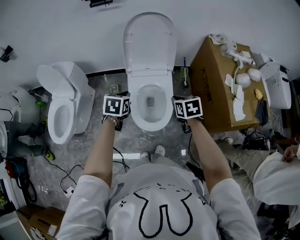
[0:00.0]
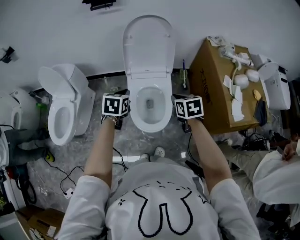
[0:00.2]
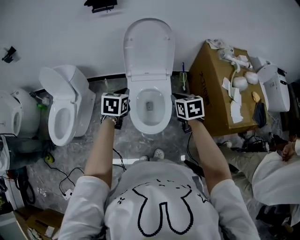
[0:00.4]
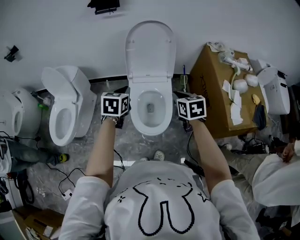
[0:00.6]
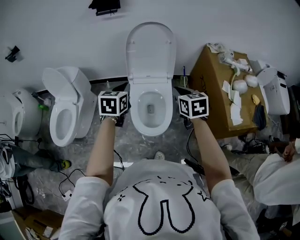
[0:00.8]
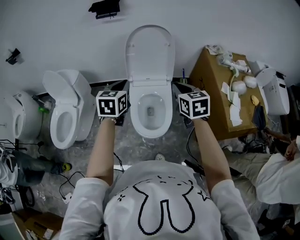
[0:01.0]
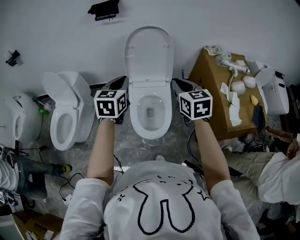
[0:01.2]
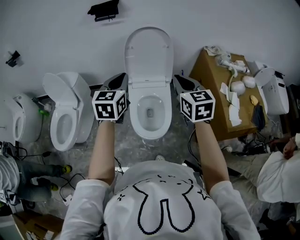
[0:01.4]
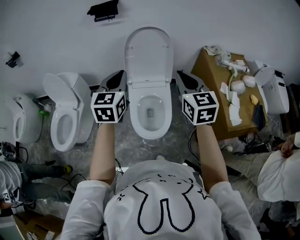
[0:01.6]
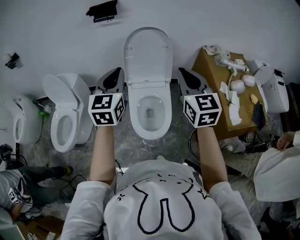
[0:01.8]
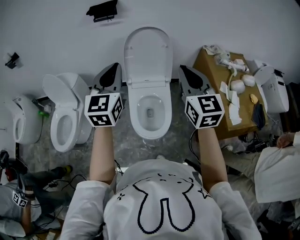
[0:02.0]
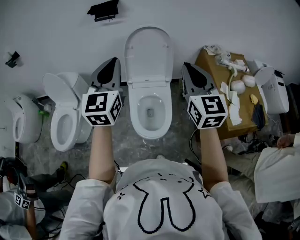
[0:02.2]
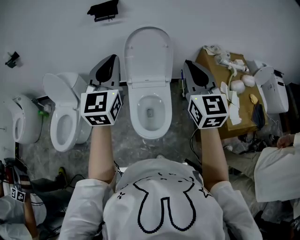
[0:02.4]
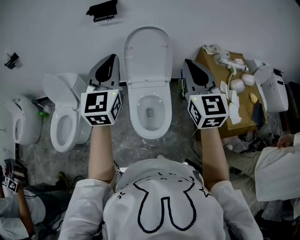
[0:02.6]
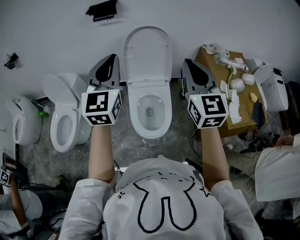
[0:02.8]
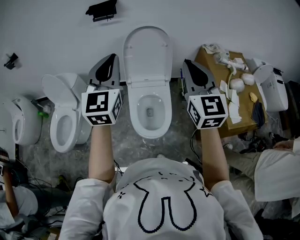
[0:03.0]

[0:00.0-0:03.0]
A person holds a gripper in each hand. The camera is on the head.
0:00.0 to 0:01.6: Both grippers travel together upward, about 25 cm. The right gripper tilts its fingers approximately 40 degrees upward, while the left gripper tips its fingers upward by about 40 degrees.
0:01.6 to 0:03.0: The two grippers go about 10 cm upward.

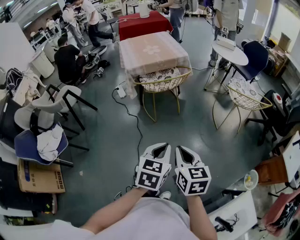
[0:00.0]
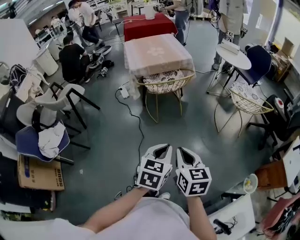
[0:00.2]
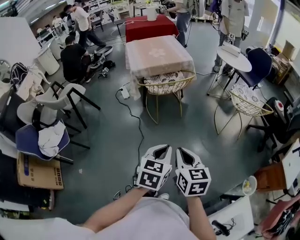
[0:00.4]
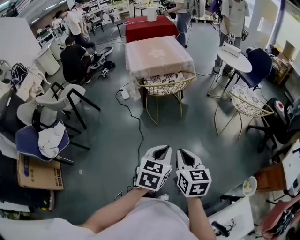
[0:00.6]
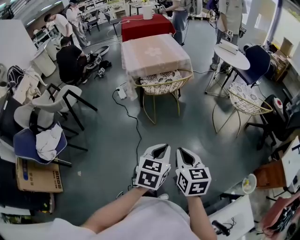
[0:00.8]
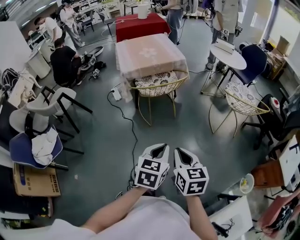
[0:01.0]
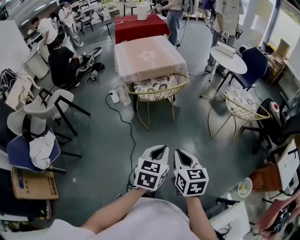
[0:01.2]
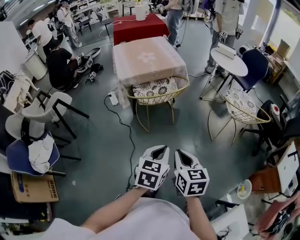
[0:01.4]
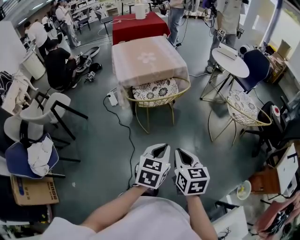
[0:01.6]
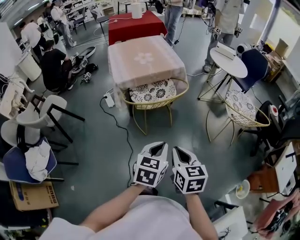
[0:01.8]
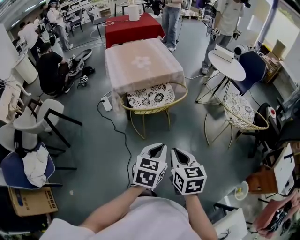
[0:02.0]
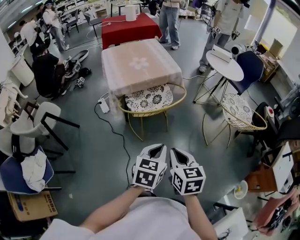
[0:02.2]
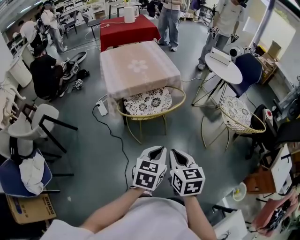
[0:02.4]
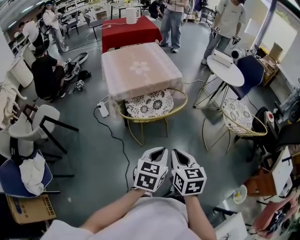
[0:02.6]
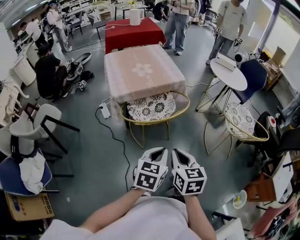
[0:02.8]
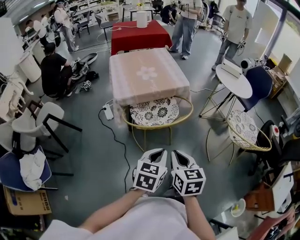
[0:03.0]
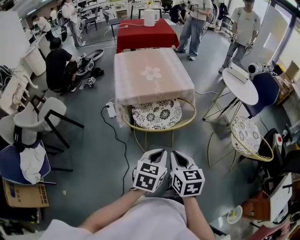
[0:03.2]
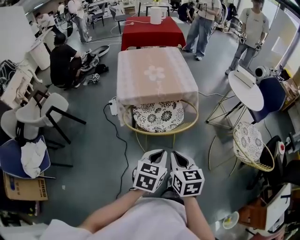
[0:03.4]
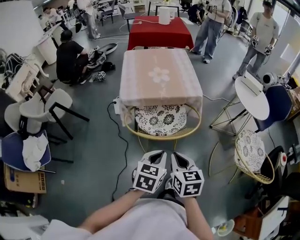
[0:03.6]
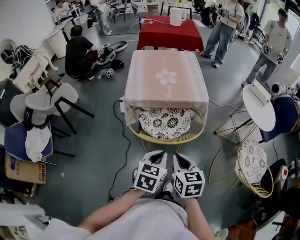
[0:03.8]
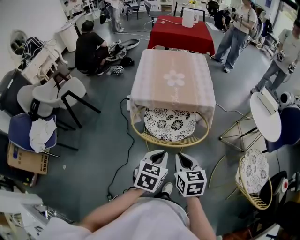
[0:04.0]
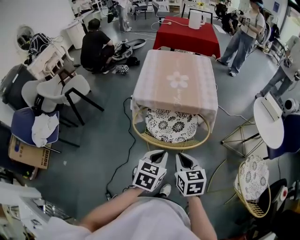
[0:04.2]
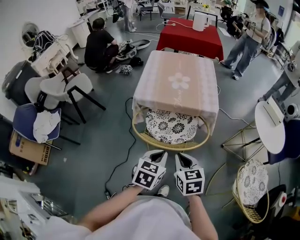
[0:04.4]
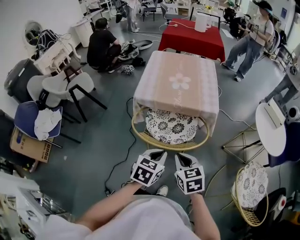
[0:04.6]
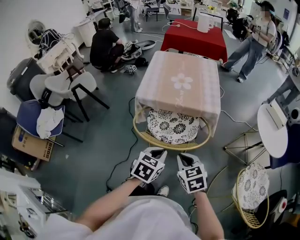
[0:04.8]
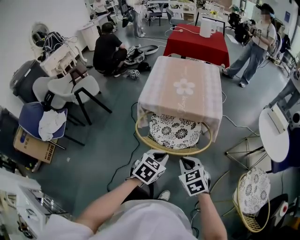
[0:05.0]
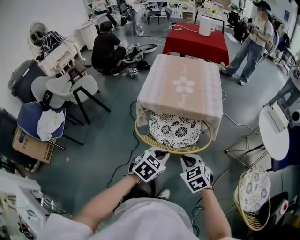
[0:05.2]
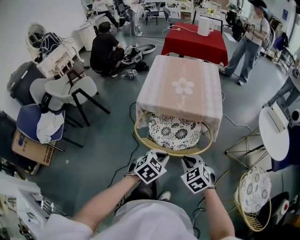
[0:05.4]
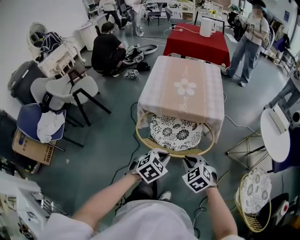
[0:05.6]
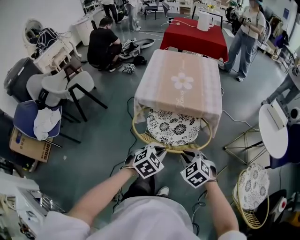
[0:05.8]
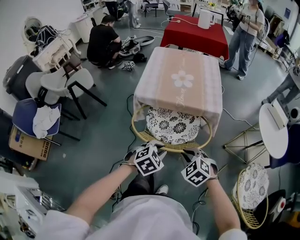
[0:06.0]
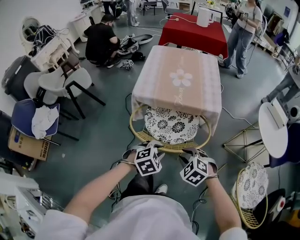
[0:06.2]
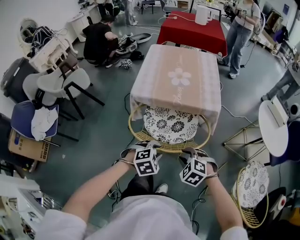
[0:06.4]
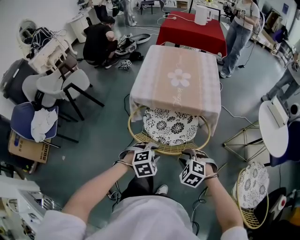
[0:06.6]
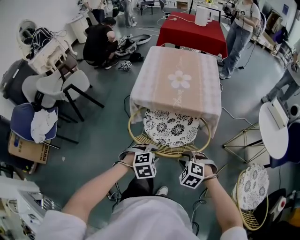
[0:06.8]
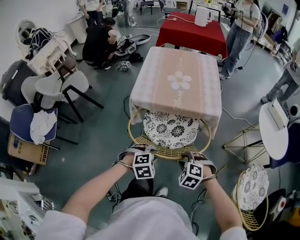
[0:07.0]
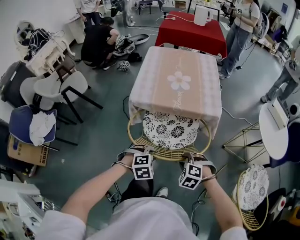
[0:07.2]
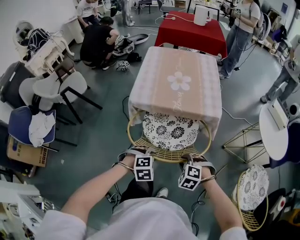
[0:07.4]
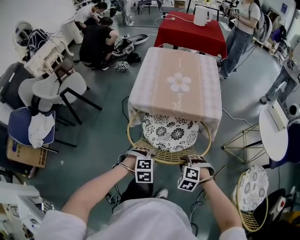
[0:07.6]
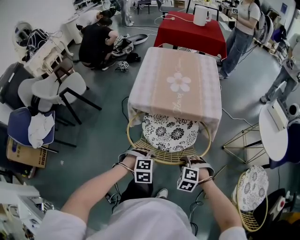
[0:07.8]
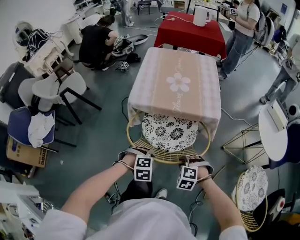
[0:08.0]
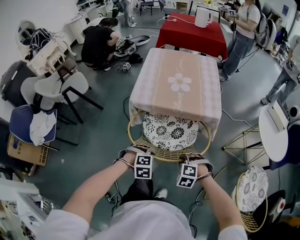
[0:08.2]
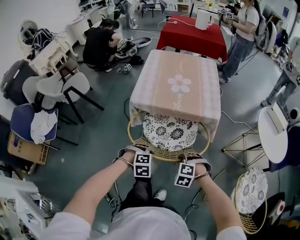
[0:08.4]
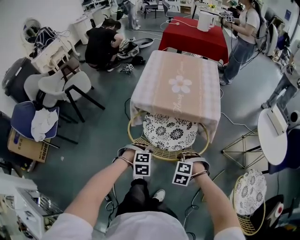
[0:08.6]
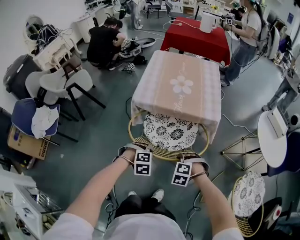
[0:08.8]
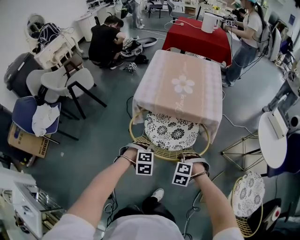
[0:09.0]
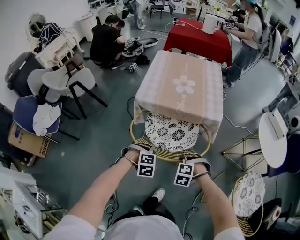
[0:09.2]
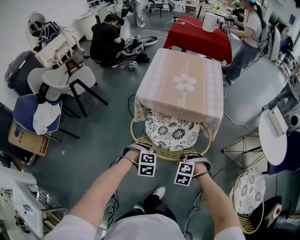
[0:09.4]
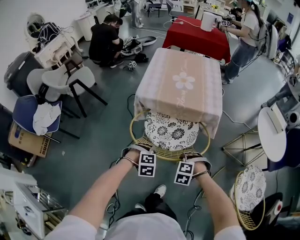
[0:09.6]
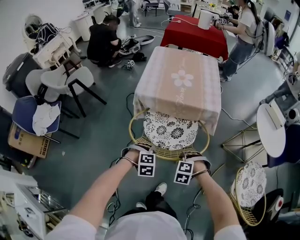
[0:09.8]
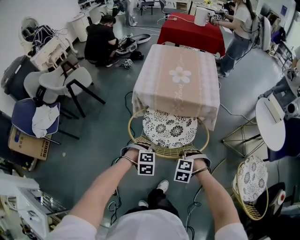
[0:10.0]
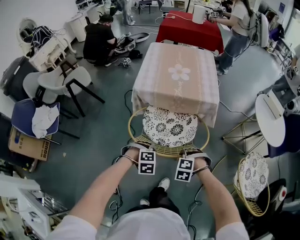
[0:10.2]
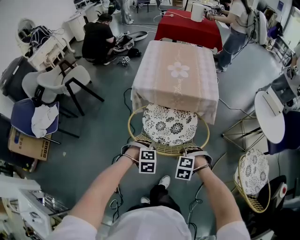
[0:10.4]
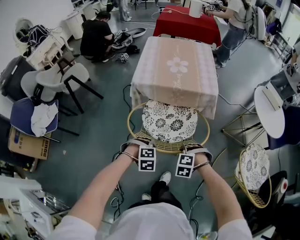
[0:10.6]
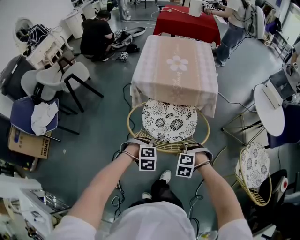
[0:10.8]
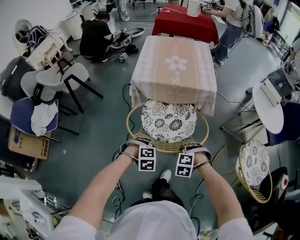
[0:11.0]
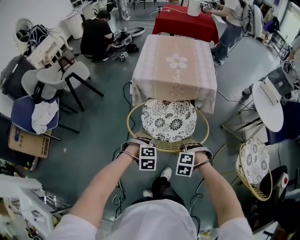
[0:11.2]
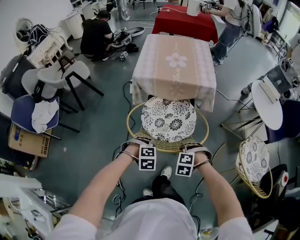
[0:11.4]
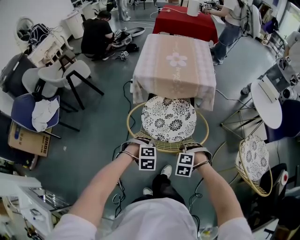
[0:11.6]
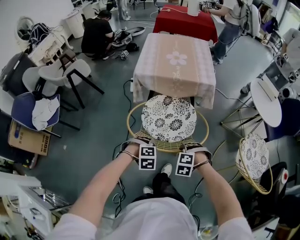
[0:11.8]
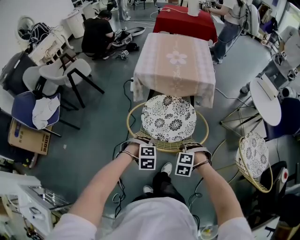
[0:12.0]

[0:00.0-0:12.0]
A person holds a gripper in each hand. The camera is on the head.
0:00.0 to 0:01.6: The two grippers go about 15 cm forward.
0:01.6 to 0:03.0: Both grippers move forward, about 15 cm.
0:03.0 to 0:04.4: The left gripper ends up about 15 cm from where it was, and rotates about 20 degrees, while the right gripper ends up approximately 20 cm from where it was, and swivels approximately 30 degrees.
0:04.4 to 0:06.0: The grippers both shift downward by some 5 cm. The left gripper swivels some 40 degrees, while the right gripper rotates around the line of its fingers by roughly 40 degrees, counterclockwise from behind.
0:06.0 to 0:07.6: The two grippers go roughly 10 cm downward. The left gripper swivels some 30 degrees, while the right gripper swivels about 30 degrees.
0:07.6 to 0:09.0: There are only small adjustments of the grippers.
0:09.0 to 0:10.4: The grippers both shift backward by some 10 cm.
0:10.4 to 0:12.0: Both grippers travel together backward, about 10 cm.

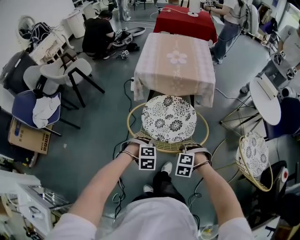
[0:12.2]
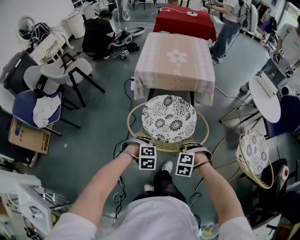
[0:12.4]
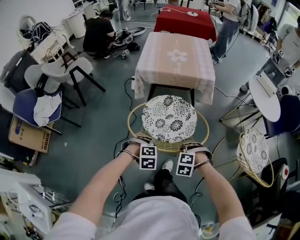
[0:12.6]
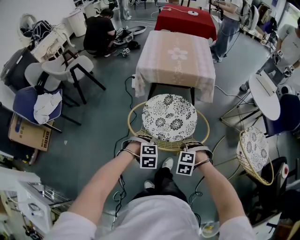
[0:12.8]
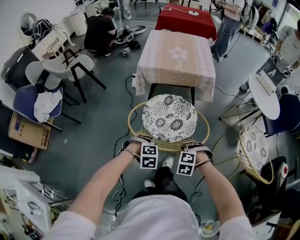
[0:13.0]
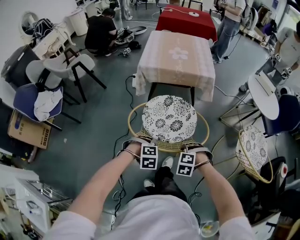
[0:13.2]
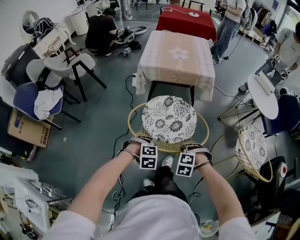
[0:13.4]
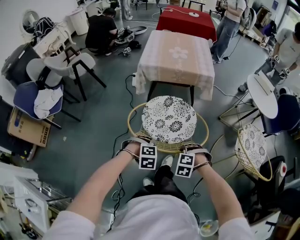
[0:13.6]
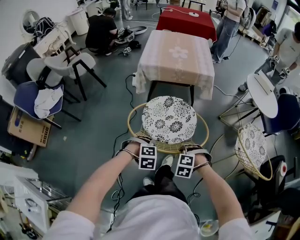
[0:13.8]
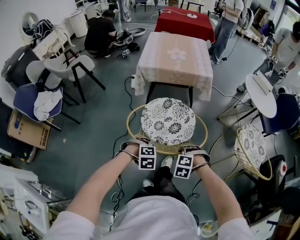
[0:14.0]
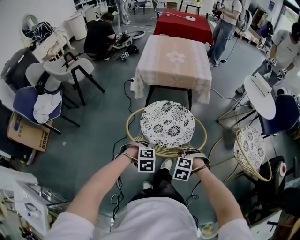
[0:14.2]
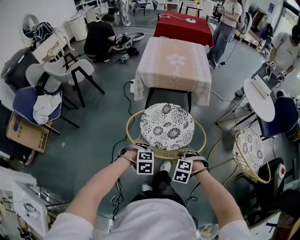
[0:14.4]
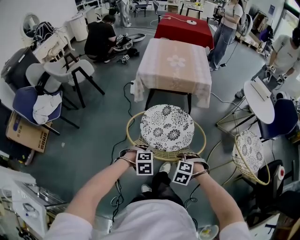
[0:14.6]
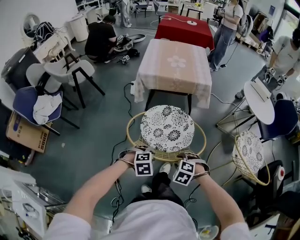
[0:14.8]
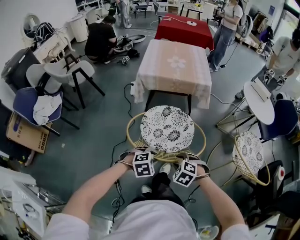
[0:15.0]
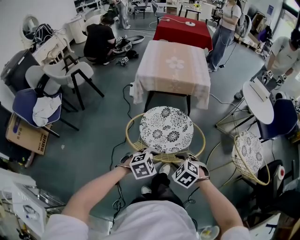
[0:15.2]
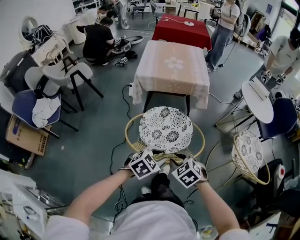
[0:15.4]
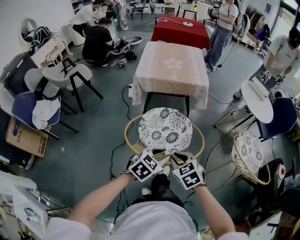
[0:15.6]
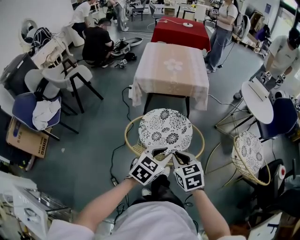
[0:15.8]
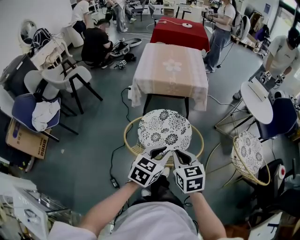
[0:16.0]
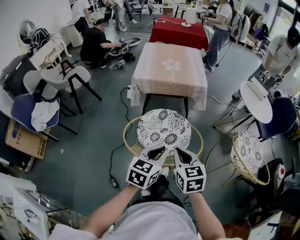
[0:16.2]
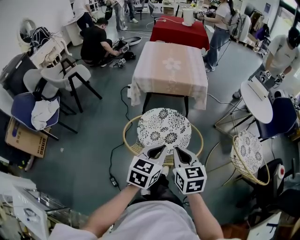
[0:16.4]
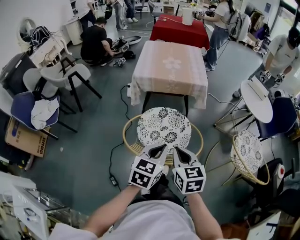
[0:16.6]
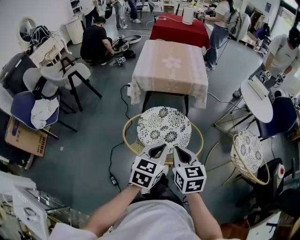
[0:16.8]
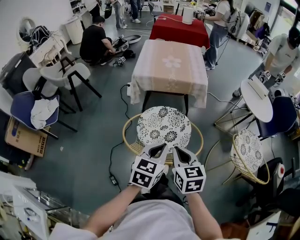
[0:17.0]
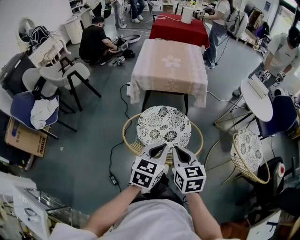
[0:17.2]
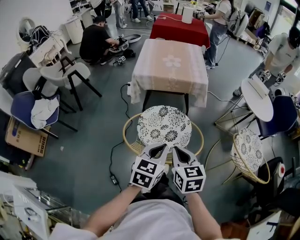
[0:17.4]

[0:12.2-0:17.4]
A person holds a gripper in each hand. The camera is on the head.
0:12.2 to 0:14.0: The grippers both shift backward by about 10 cm.
0:14.0 to 0:15.6: The left gripper goes about 15 cm upward and to the right, and tips its fingers upward by some 40 degrees. The right gripper goes about 15 cm upward, and rotates around the line of its fingers by about 50 degrees, clockwise from behind.
0:15.6 to 0:17.4: Both grippers move upward, roughly 5 cm. The right gripper changes its angle by some 30 degrees, while the left gripper swivels roughly 30 degrees, and closes.

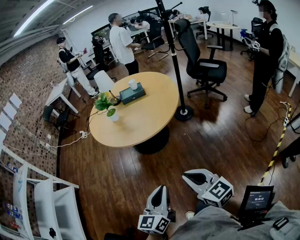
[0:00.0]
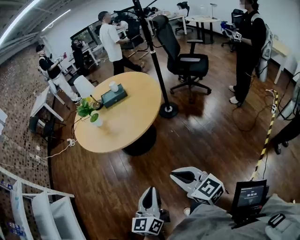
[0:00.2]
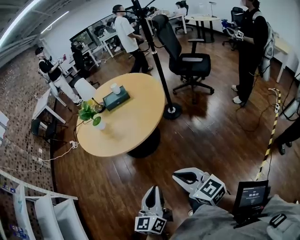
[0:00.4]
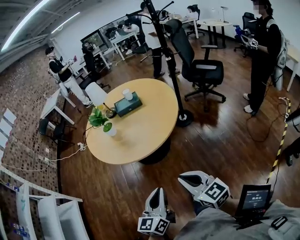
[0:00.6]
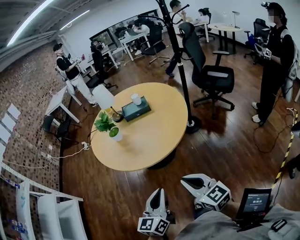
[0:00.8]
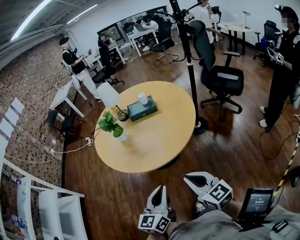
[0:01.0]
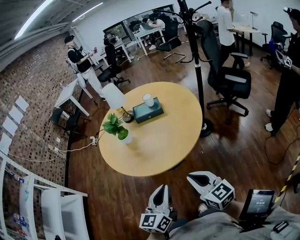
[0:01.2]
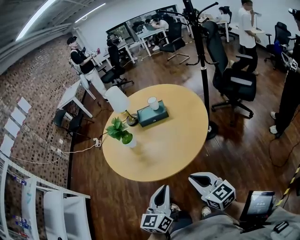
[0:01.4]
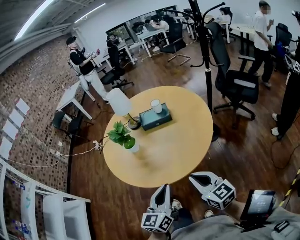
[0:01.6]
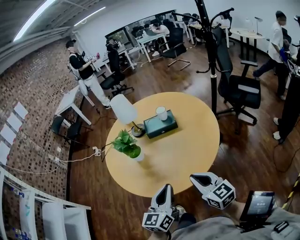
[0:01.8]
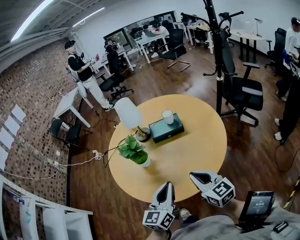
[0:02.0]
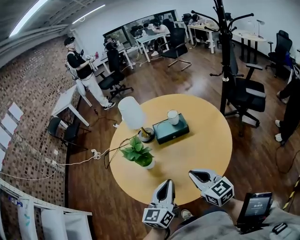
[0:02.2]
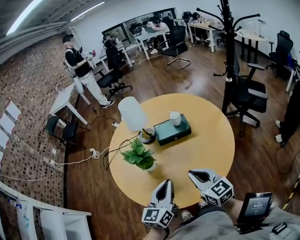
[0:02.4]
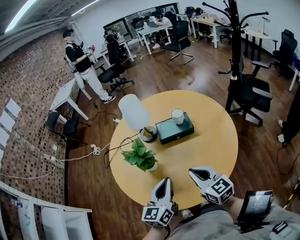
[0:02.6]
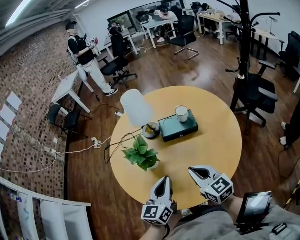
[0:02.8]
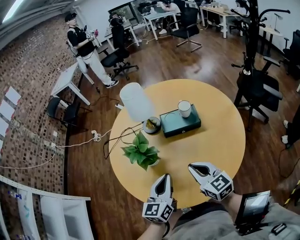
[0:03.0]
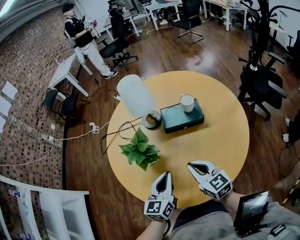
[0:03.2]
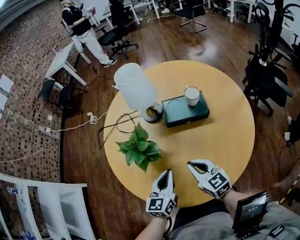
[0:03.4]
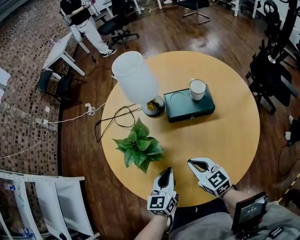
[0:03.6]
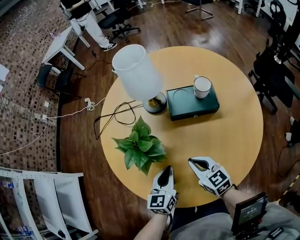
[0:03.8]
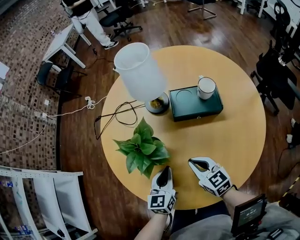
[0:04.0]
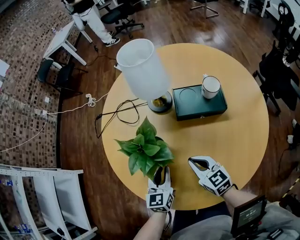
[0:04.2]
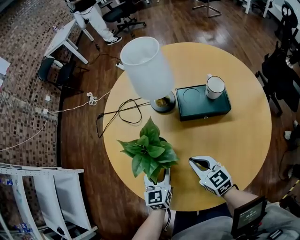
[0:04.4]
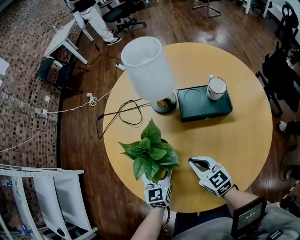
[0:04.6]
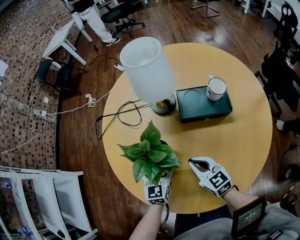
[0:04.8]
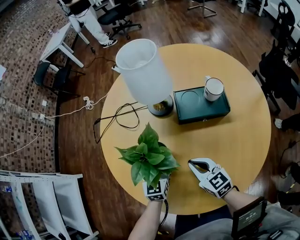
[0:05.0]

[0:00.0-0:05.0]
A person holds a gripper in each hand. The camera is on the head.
0:00.0 to 0:01.6: The two grippers go approximately 35 cm forward.
0:01.6 to 0:03.4: The left gripper shifts approximately 35 cm forward and downward. The right gripper is displaced forward, to the left and downward by some 35 cm.
0:03.4 to 0:05.0: The right gripper goes about 10 cm downward and forward; the left gripper moves forward, downward and to the left, some 20 cm, and opens.
